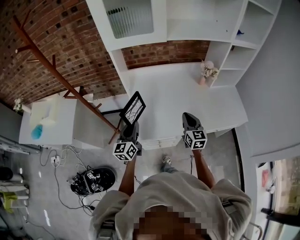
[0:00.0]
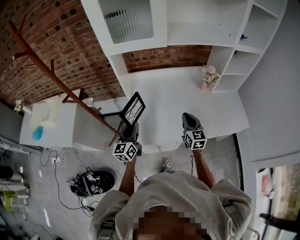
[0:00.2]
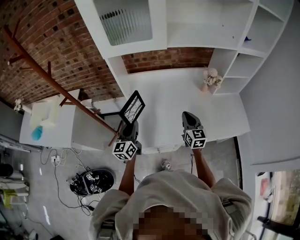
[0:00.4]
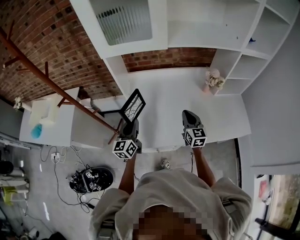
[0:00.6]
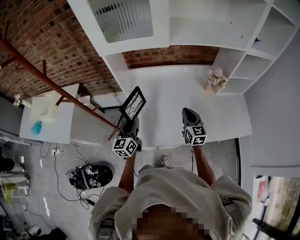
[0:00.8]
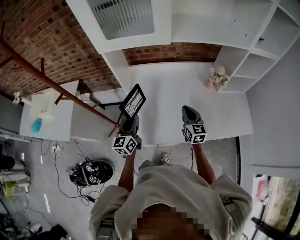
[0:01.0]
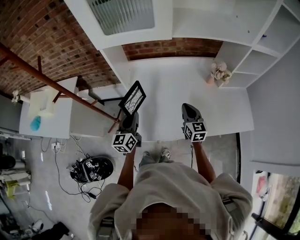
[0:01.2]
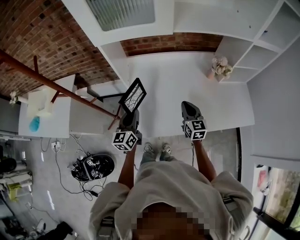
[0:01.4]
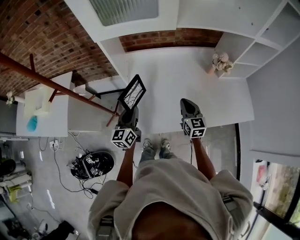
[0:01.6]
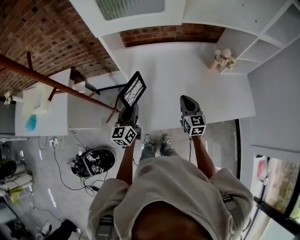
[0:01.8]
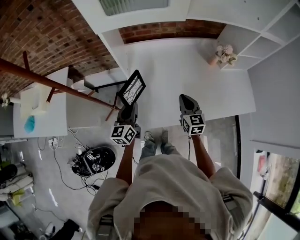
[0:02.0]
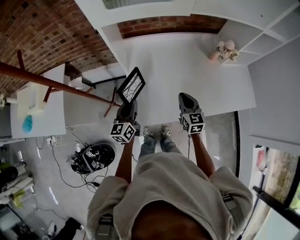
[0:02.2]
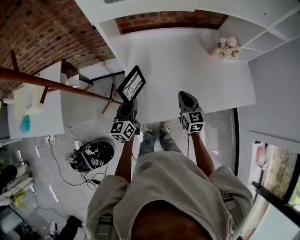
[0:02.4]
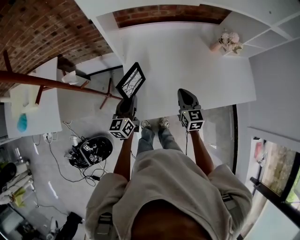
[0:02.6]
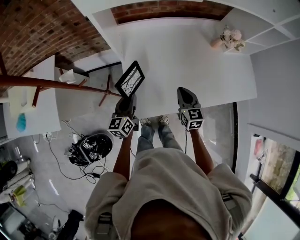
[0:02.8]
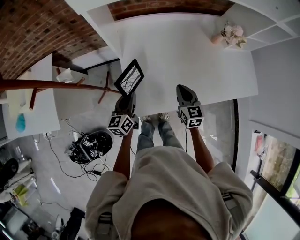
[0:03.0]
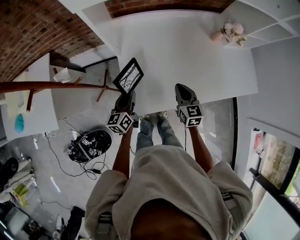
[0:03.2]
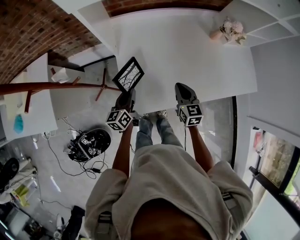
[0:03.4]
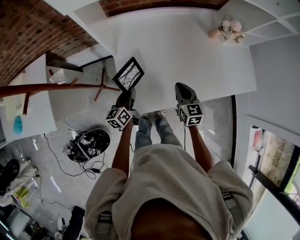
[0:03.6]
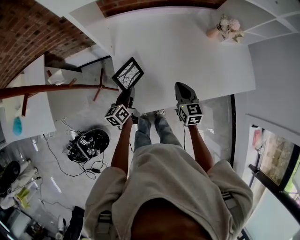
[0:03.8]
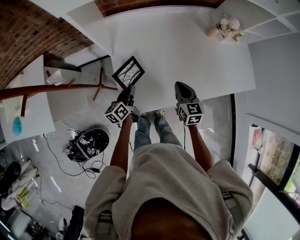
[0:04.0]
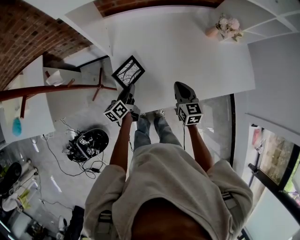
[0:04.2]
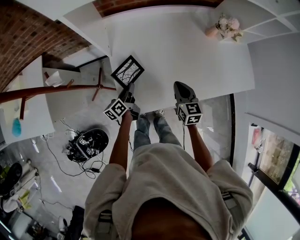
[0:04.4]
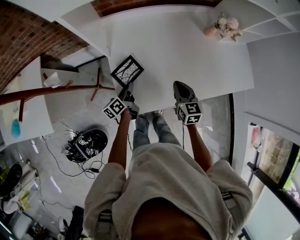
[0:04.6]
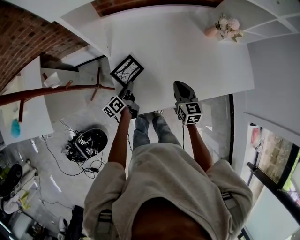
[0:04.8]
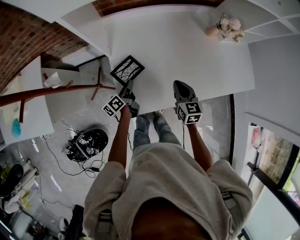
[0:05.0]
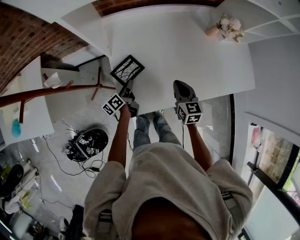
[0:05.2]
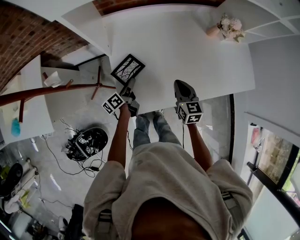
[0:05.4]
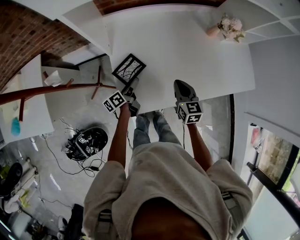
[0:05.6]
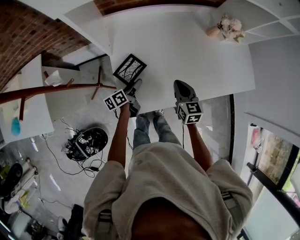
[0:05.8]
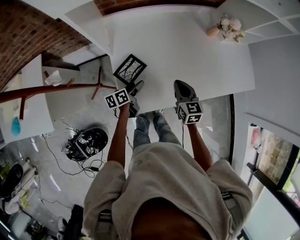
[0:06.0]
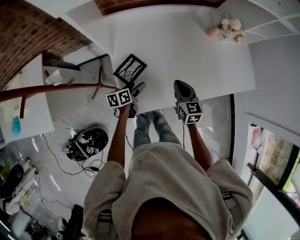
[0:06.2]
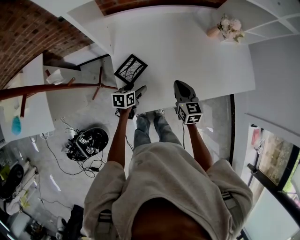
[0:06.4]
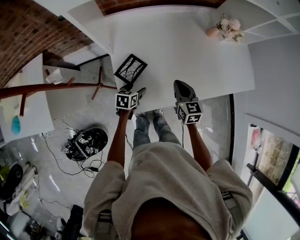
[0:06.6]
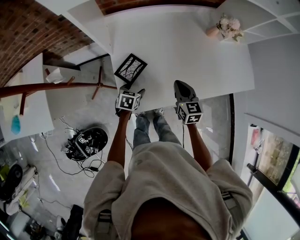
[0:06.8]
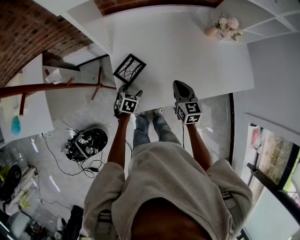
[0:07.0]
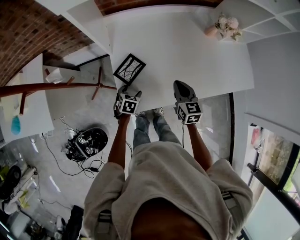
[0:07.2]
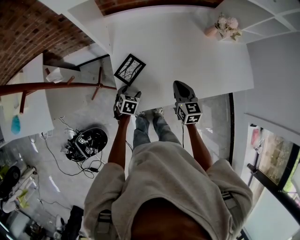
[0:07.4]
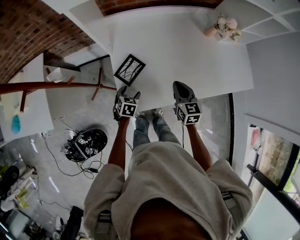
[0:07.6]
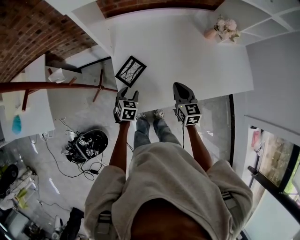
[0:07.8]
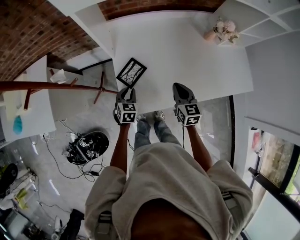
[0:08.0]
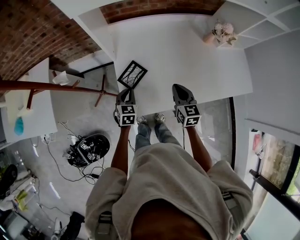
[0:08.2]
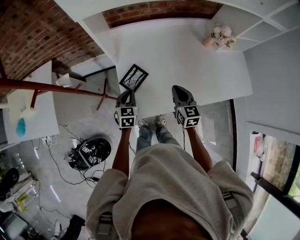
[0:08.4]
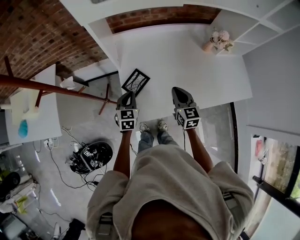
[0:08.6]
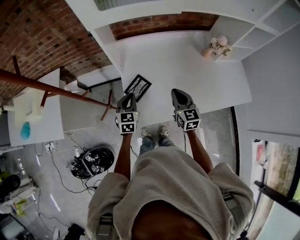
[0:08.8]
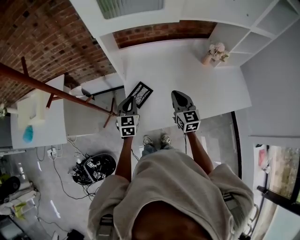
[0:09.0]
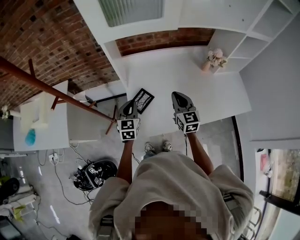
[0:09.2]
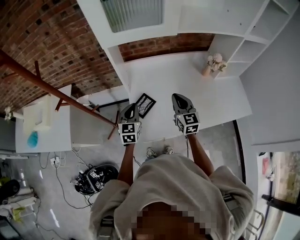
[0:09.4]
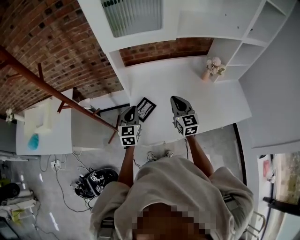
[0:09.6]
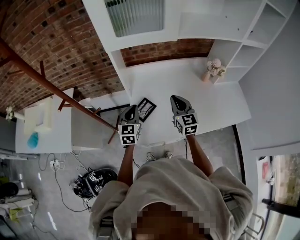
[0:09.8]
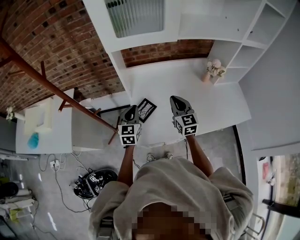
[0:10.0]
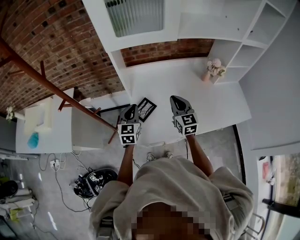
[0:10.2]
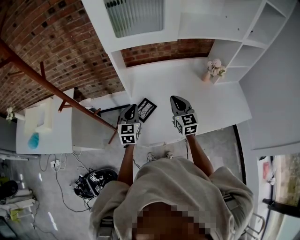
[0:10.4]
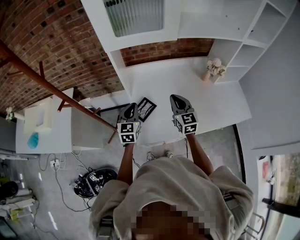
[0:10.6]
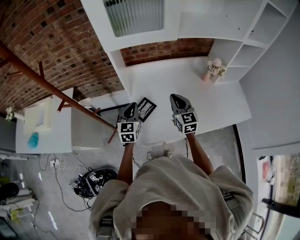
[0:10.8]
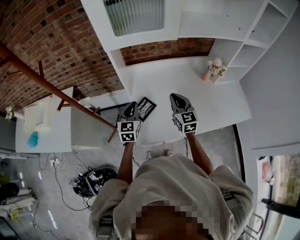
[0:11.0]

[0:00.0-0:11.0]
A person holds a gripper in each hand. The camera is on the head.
0:00.0 to 0:01.6: Both grippers travel together forward, about 10 cm.
0:01.6 to 0:03.2: The left gripper is displaced downward by roughly 10 cm. Meanwhile the right gripper shifts about 10 cm downward and to the left.
0:03.2 to 0:04.8: The left gripper shifts about 10 cm downward, and swivels some 30 degrees.
0:04.8 to 0:06.2: The left gripper swivels roughly 30 degrees, and opens up.
0:06.2 to 0:07.8: The left gripper twists roughly 40 degrees clockwise, seen from behind.
0:07.8 to 0:09.4: The left gripper shifts about 20 cm upward, points its fingers about 30 degrees further upward, and closes, while the right gripper shifts approximately 15 cm upward.
0:09.4 to 0:11.0: The grippers stay close to where they were, moving slightly.

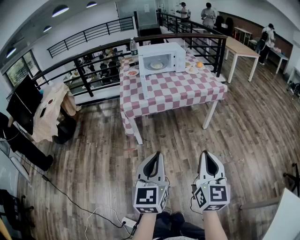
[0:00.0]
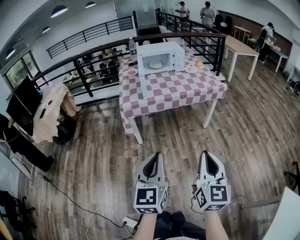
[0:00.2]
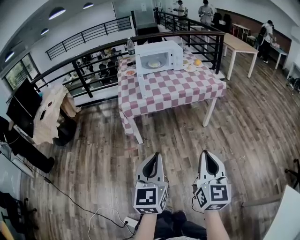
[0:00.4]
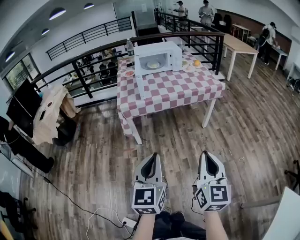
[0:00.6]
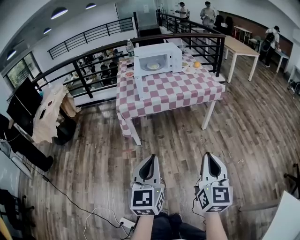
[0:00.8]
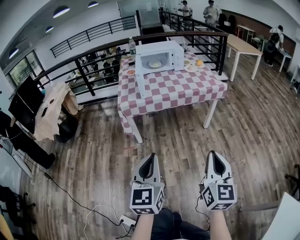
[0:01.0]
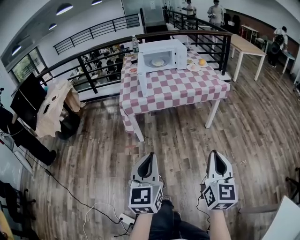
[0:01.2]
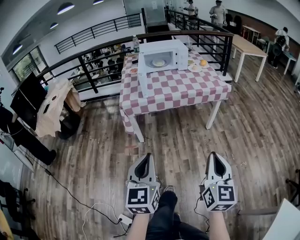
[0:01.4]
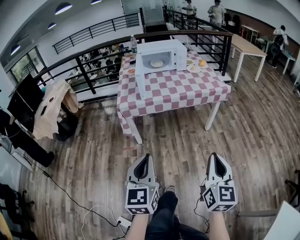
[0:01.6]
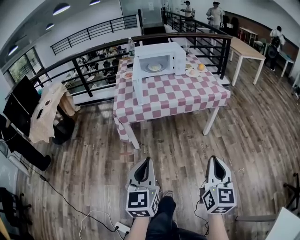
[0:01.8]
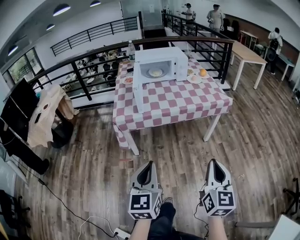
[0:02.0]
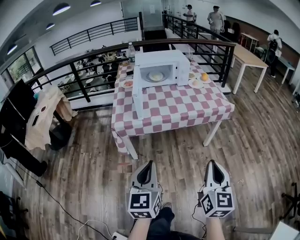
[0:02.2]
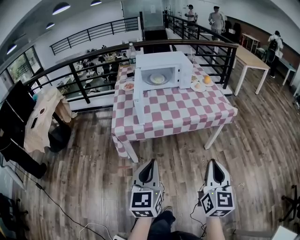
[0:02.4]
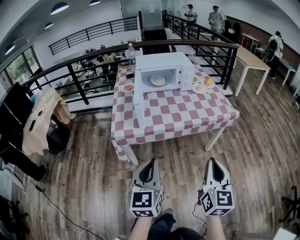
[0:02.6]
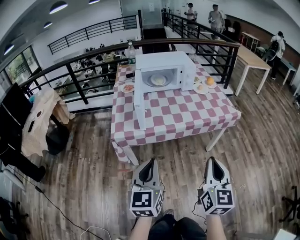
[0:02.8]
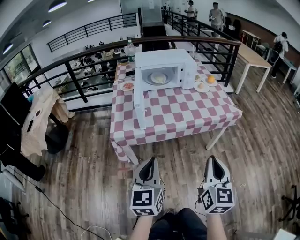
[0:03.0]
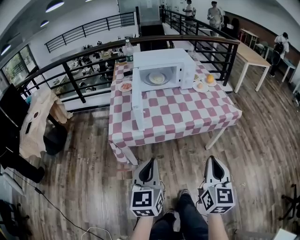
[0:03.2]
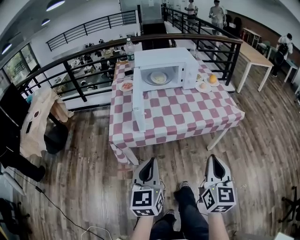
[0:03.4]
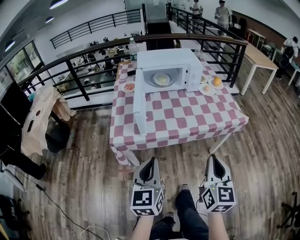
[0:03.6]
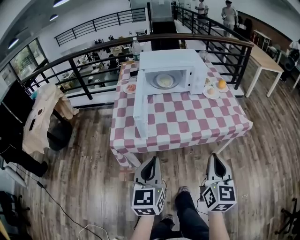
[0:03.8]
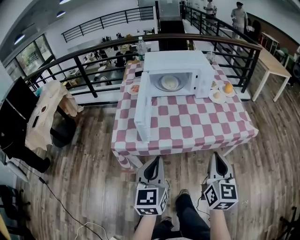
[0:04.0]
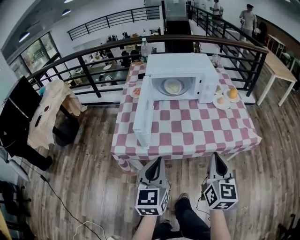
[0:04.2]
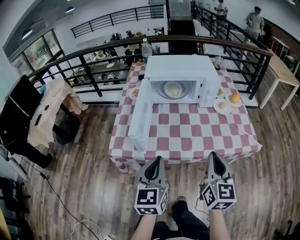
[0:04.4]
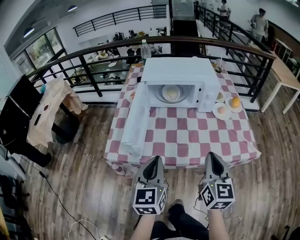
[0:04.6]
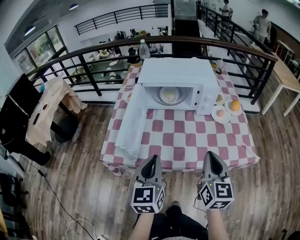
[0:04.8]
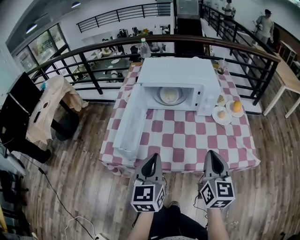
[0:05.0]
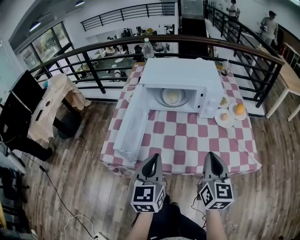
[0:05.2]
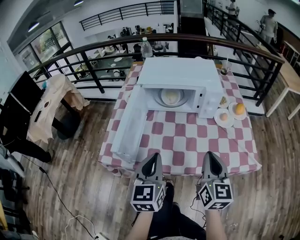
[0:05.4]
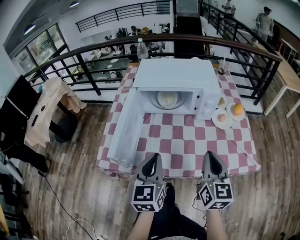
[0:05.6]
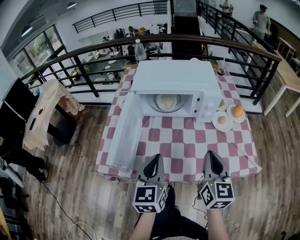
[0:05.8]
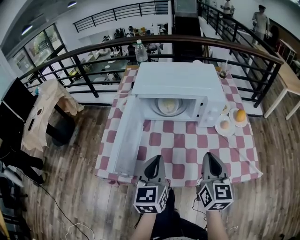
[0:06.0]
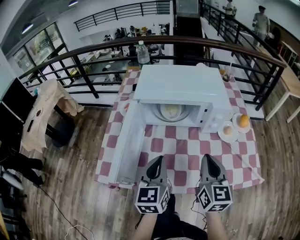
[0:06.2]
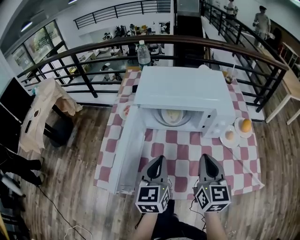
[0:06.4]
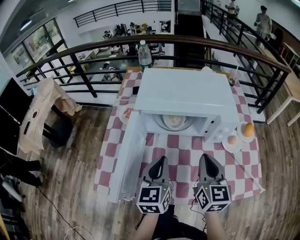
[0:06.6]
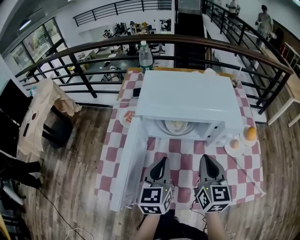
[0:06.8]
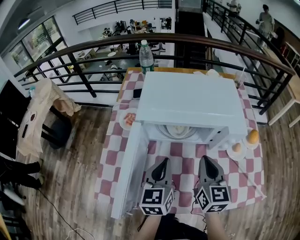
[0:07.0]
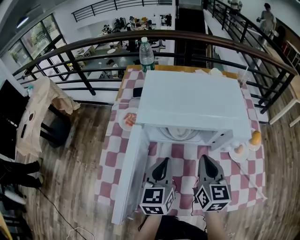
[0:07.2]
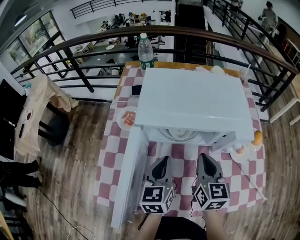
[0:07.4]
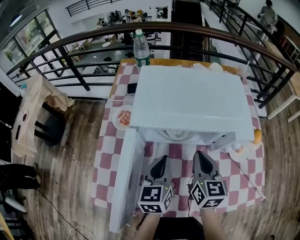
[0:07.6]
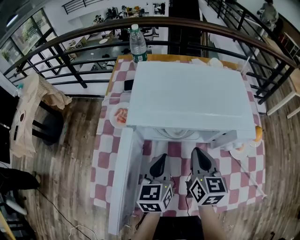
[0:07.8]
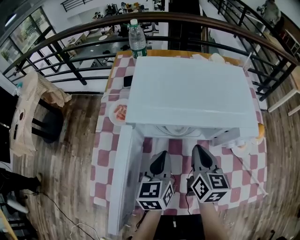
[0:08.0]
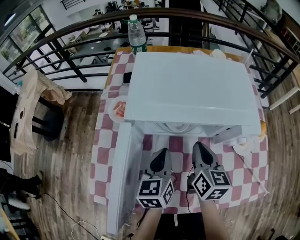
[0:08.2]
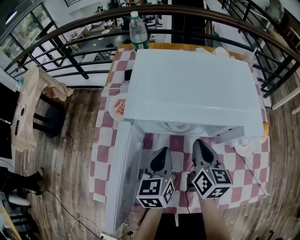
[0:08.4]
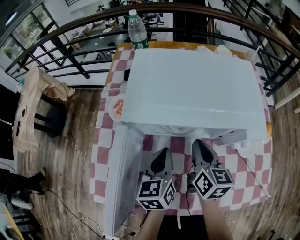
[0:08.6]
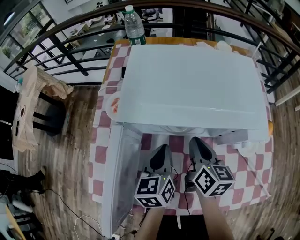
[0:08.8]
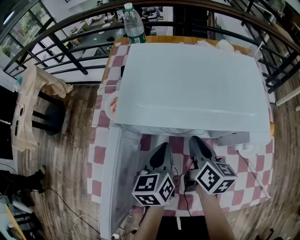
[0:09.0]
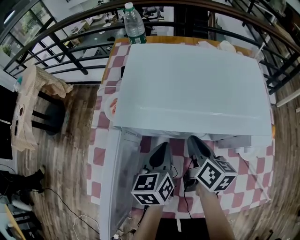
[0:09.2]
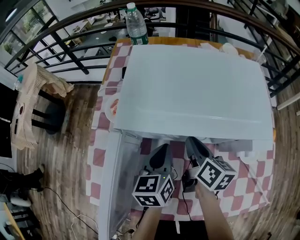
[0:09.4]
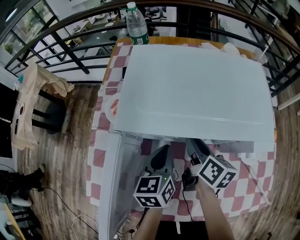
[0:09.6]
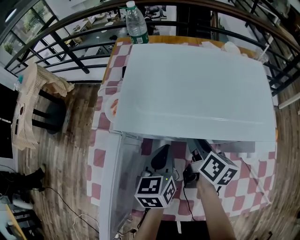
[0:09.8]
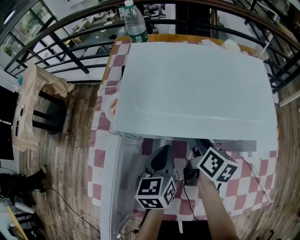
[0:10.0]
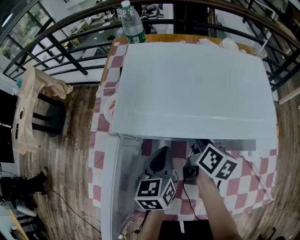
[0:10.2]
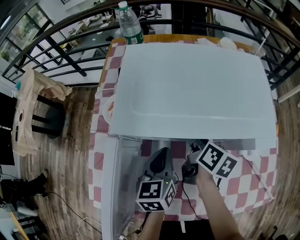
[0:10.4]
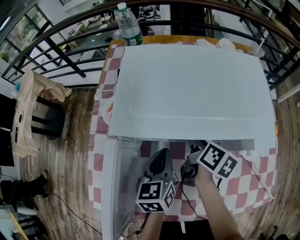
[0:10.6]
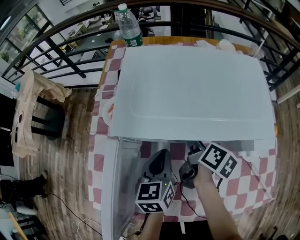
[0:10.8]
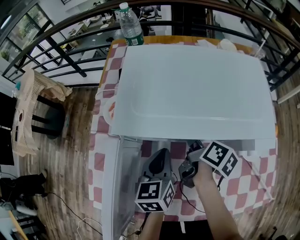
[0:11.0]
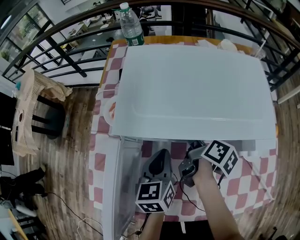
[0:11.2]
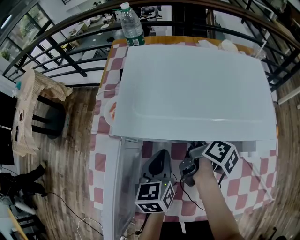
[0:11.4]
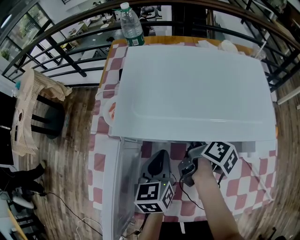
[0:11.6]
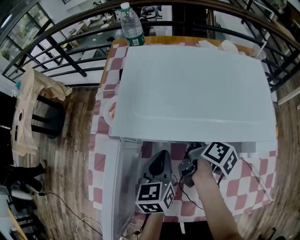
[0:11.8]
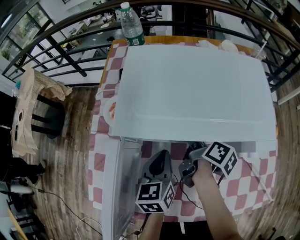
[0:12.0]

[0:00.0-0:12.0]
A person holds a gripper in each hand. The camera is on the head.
0:00.0 to 0:01.6: The right gripper heads to the right and forward, covering about 10 cm, while the left gripper moves roughly 5 cm.
0:01.6 to 0:03.0: Both grippers travel together forward, about 25 cm.
0:03.0 to 0:04.4: Both grippers move forward, some 25 cm.
0:04.4 to 0:06.0: Both grippers move forward, roughly 20 cm.
0:06.0 to 0:07.6: The left gripper goes roughly 20 cm forward. The right gripper moves forward and to the left, about 25 cm.
0:07.6 to 0:09.0: The right gripper shifts roughly 10 cm downward and forward, and rotates roughly 30 degrees; the left gripper changes place by about 5 cm.
0:09.0 to 0:10.4: The right gripper changes place by some 5 cm, and opens.
0:10.4 to 0:12.0: The right gripper swivels about 20 degrees, and closes up.

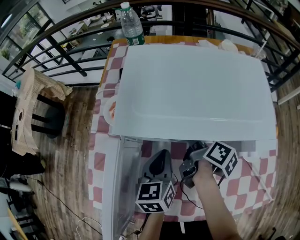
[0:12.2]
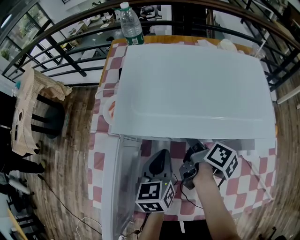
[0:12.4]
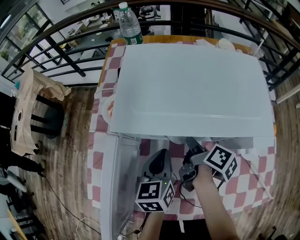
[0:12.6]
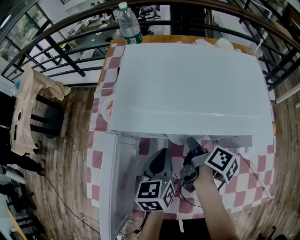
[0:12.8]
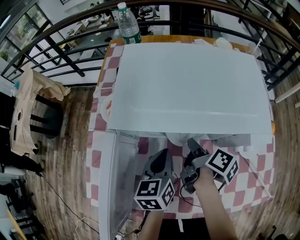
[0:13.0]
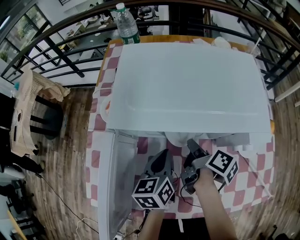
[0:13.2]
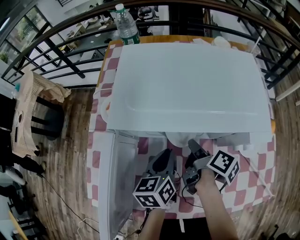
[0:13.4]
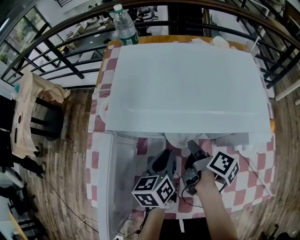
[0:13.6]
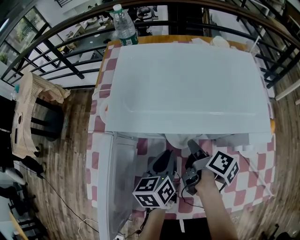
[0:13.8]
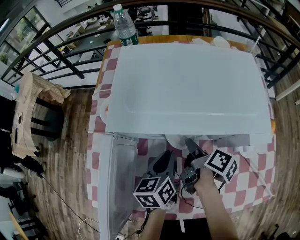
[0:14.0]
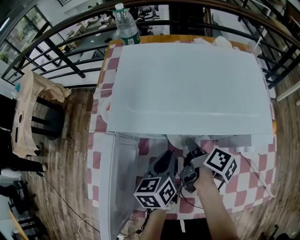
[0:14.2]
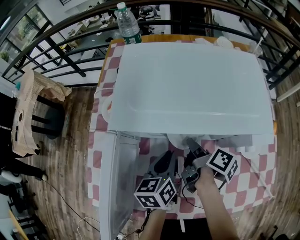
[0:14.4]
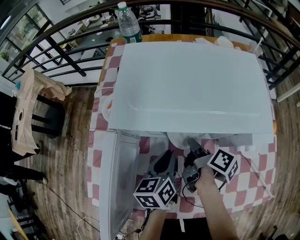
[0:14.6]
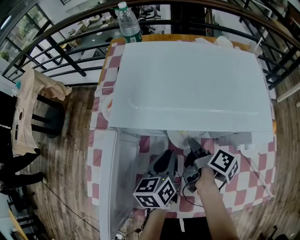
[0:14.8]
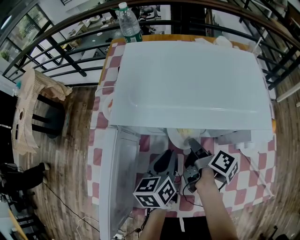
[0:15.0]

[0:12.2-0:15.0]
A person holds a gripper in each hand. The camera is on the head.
0:12.2 to 0:15.0: The grippers move only a little.
